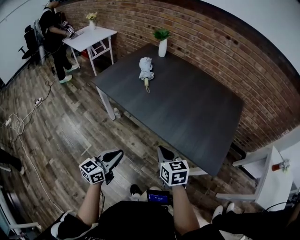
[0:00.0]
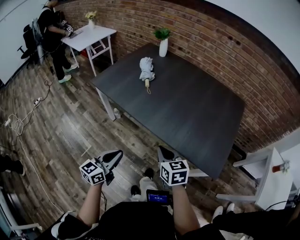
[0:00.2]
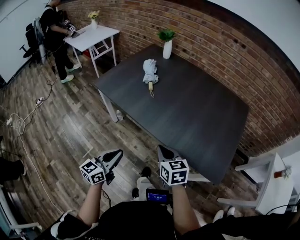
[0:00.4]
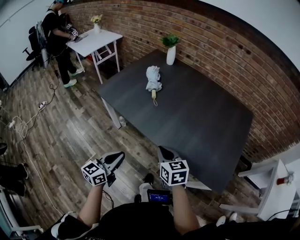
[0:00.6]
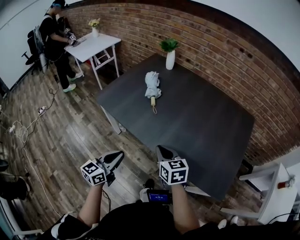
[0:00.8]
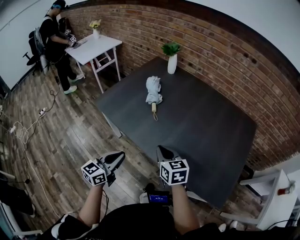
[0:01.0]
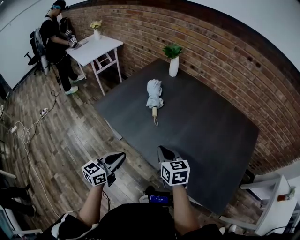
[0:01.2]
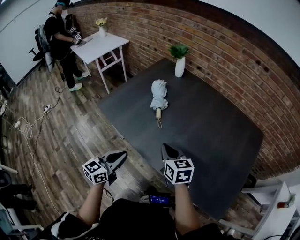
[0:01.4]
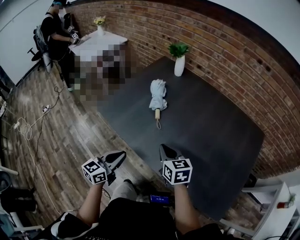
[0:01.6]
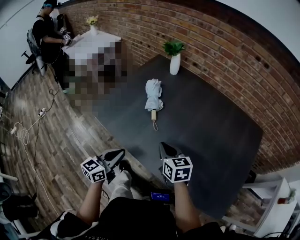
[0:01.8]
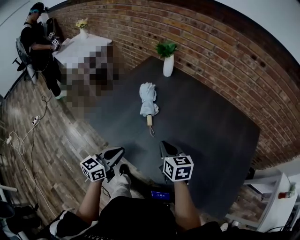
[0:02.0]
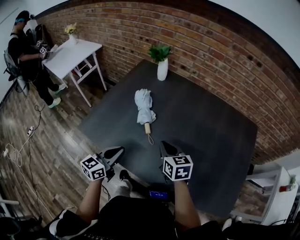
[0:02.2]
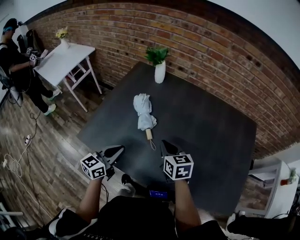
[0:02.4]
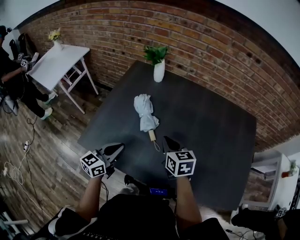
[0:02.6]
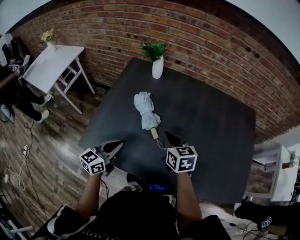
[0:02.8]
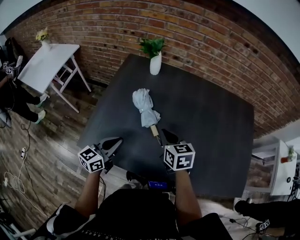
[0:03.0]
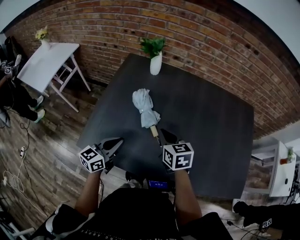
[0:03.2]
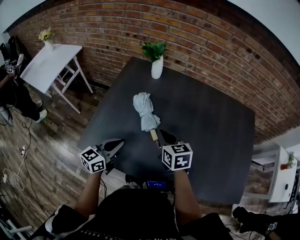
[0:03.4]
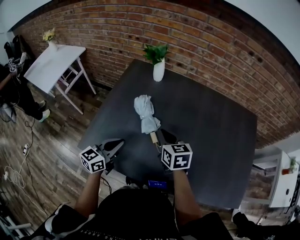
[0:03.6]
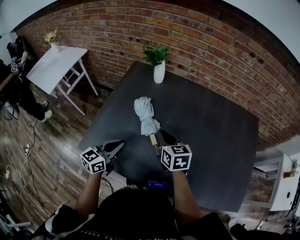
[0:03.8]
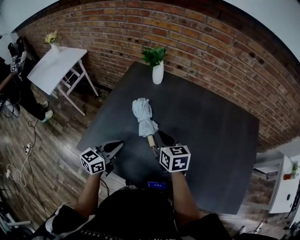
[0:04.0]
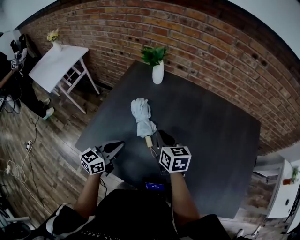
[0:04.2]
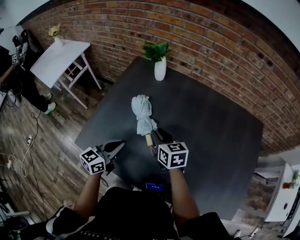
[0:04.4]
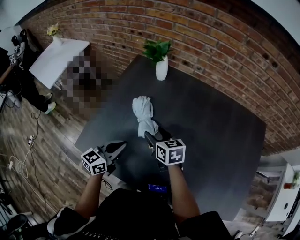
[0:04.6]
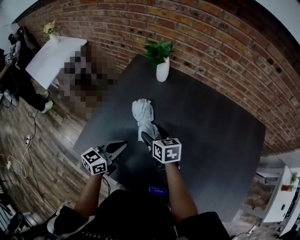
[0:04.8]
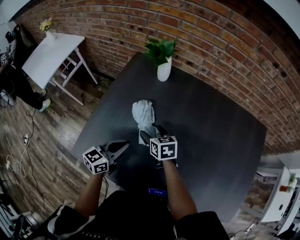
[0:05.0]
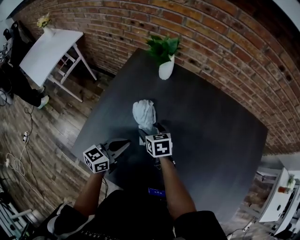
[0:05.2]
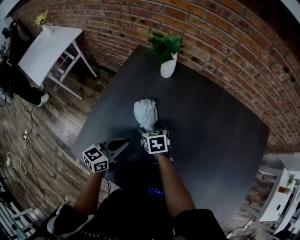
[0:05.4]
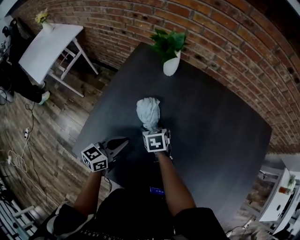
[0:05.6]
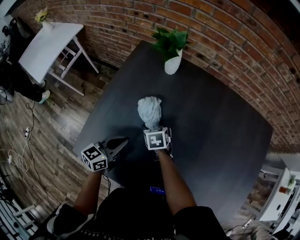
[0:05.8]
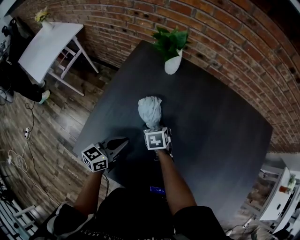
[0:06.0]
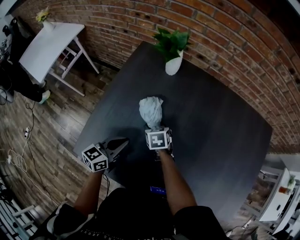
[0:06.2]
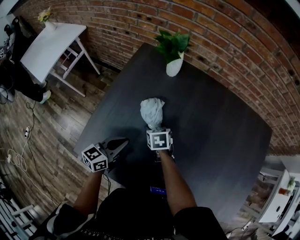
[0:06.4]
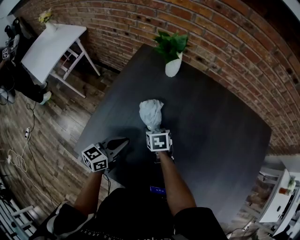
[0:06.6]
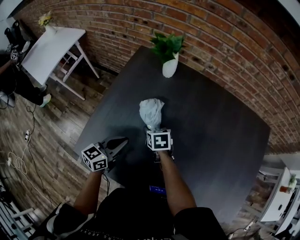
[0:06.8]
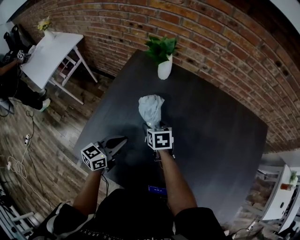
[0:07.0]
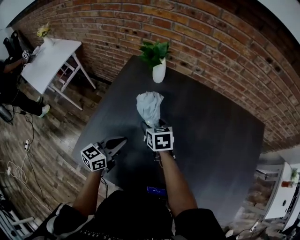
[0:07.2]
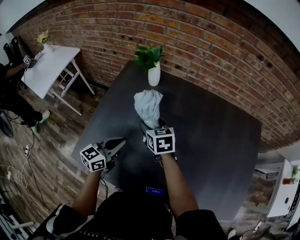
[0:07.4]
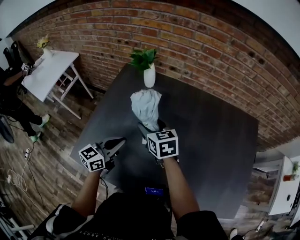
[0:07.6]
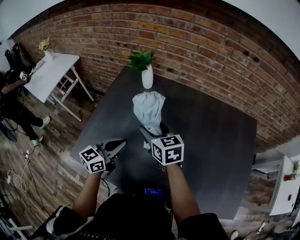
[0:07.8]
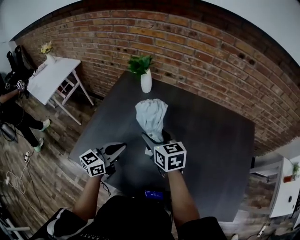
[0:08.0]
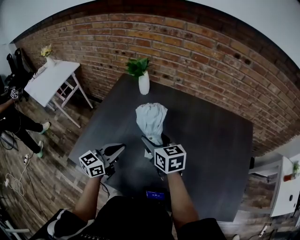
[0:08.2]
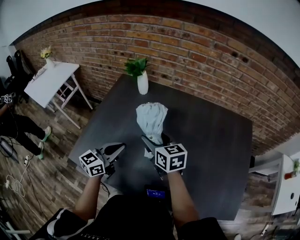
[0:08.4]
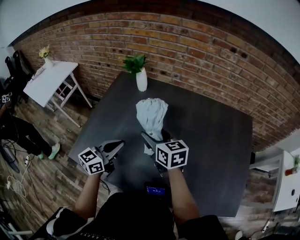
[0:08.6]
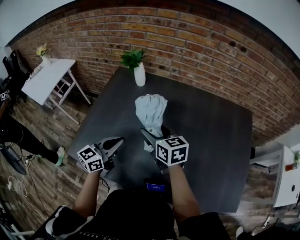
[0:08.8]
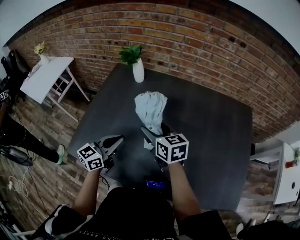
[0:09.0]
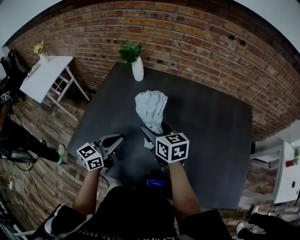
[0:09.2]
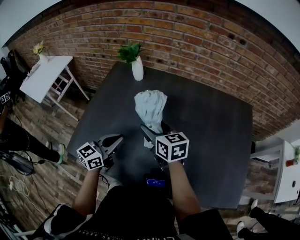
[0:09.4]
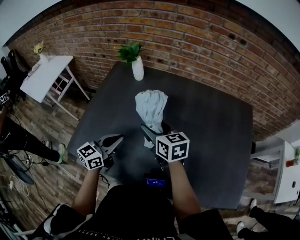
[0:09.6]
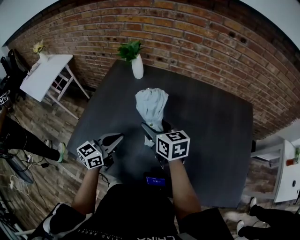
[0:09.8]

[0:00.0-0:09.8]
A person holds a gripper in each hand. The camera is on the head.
0:00.0 to 0:01.4: Both grippers travel together forward, roughly 25 cm.
0:01.4 to 0:02.8: The two grippers go some 25 cm forward and to the left. The left gripper turns by about 20 degrees, while the right gripper rotates approximately 20 degrees.
0:02.8 to 0:04.2: The right gripper is displaced forward by approximately 5 cm. Meanwhile the left gripper moves roughly 5 cm.
0:04.2 to 0:05.6: The left gripper moves forward and downward, some 10 cm, while the right gripper goes about 25 cm downward, forward and to the left, swivels about 30 degrees, and opens up.
0:05.6 to 0:07.0: The right gripper shifts approximately 5 cm upward.
0:07.0 to 0:08.4: The right gripper is displaced upward, to the right and backward by approximately 25 cm, and changes its angle by some 30 degrees, while the left gripper goes approximately 15 cm to the right, upward and backward.
0:08.4 to 0:09.8: The grippers stay close to where they were, moving slightly.

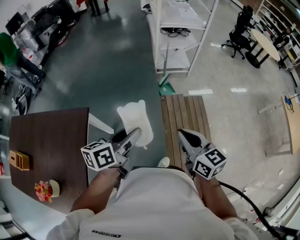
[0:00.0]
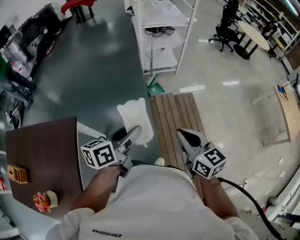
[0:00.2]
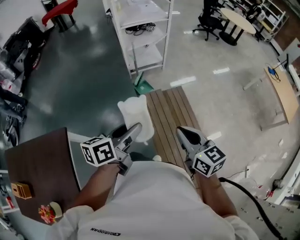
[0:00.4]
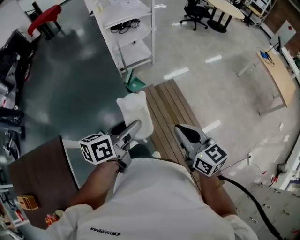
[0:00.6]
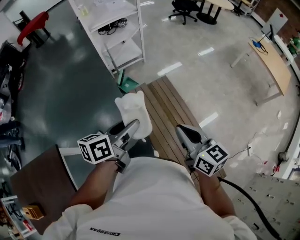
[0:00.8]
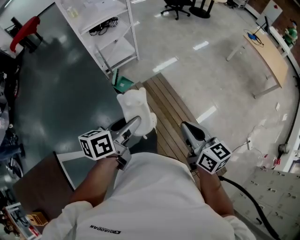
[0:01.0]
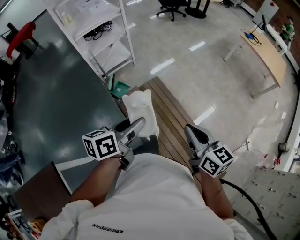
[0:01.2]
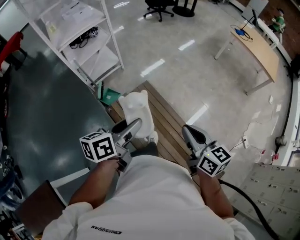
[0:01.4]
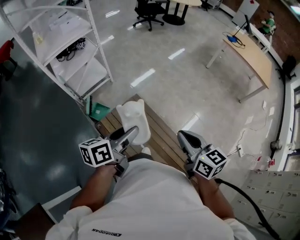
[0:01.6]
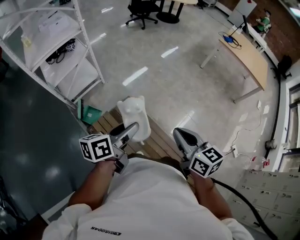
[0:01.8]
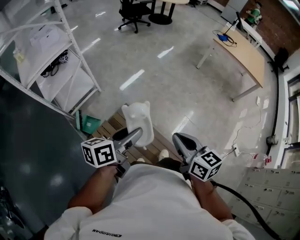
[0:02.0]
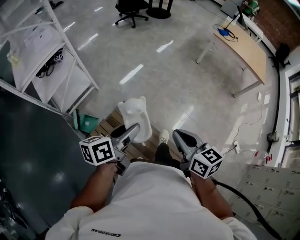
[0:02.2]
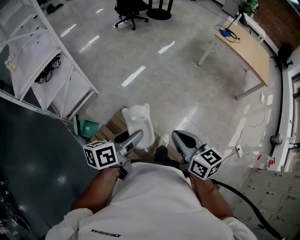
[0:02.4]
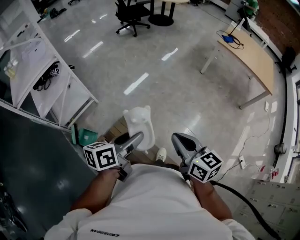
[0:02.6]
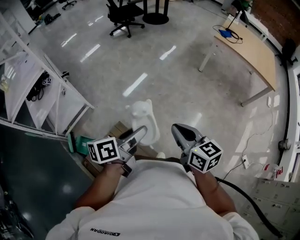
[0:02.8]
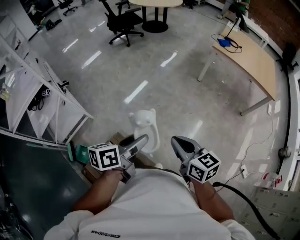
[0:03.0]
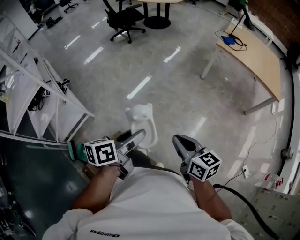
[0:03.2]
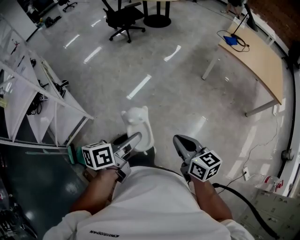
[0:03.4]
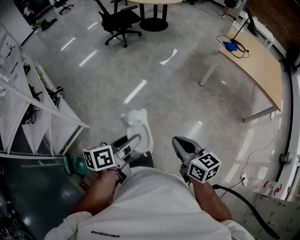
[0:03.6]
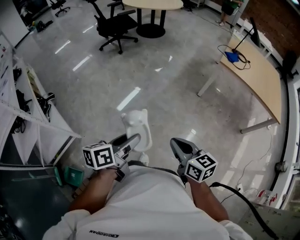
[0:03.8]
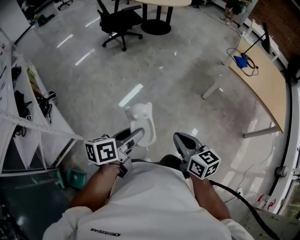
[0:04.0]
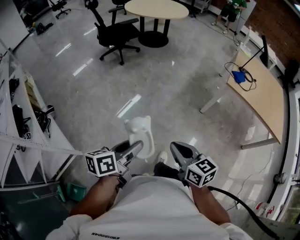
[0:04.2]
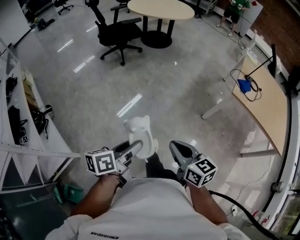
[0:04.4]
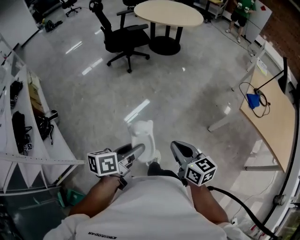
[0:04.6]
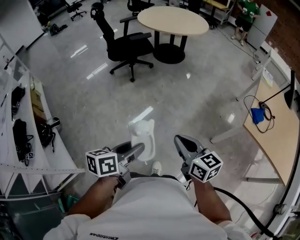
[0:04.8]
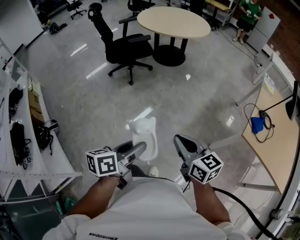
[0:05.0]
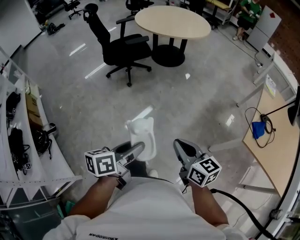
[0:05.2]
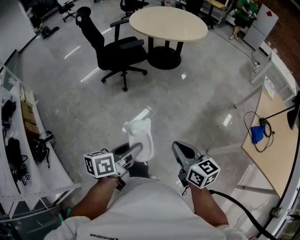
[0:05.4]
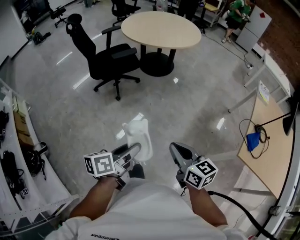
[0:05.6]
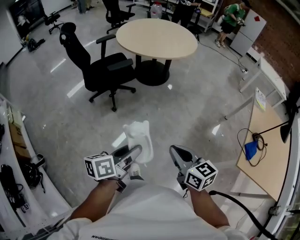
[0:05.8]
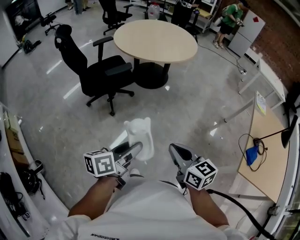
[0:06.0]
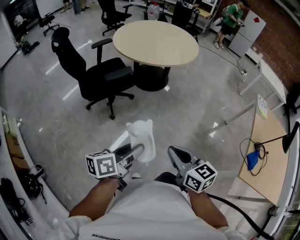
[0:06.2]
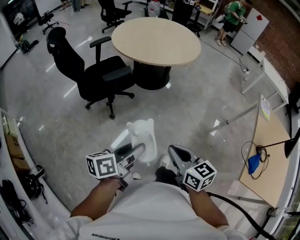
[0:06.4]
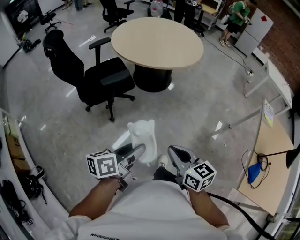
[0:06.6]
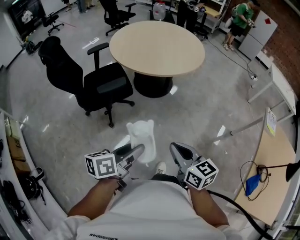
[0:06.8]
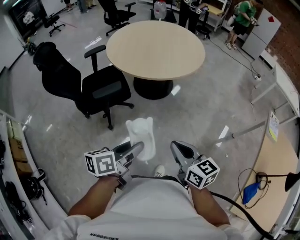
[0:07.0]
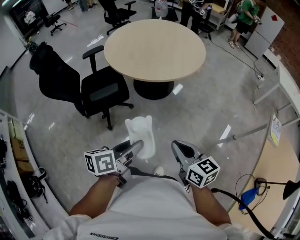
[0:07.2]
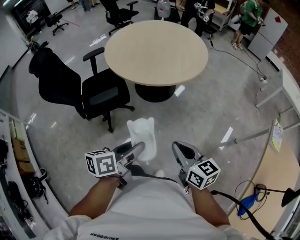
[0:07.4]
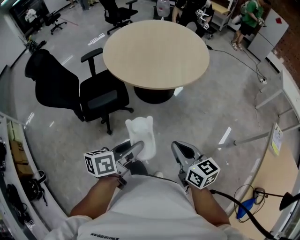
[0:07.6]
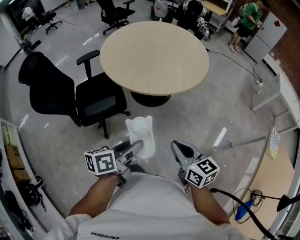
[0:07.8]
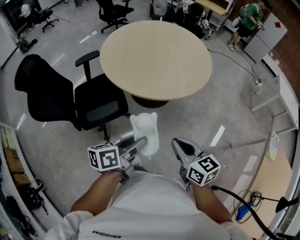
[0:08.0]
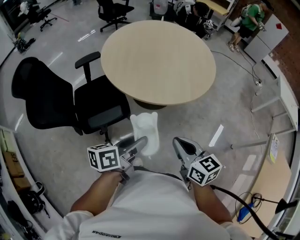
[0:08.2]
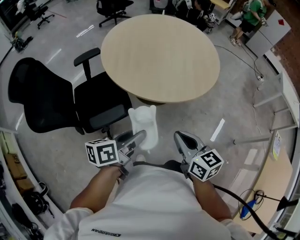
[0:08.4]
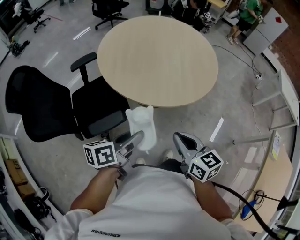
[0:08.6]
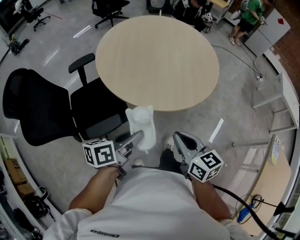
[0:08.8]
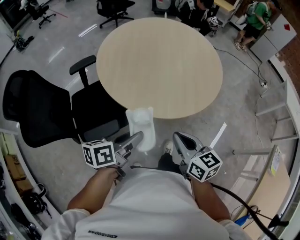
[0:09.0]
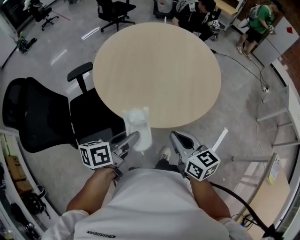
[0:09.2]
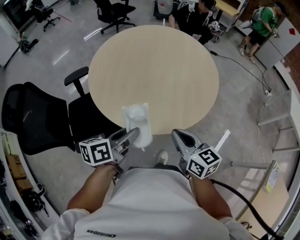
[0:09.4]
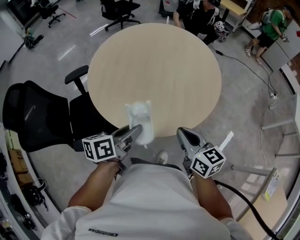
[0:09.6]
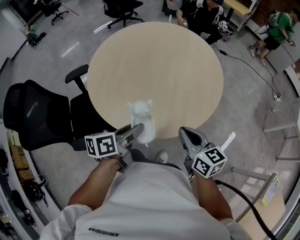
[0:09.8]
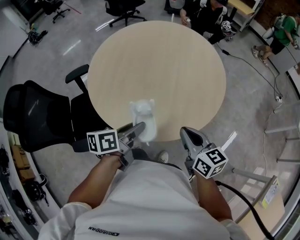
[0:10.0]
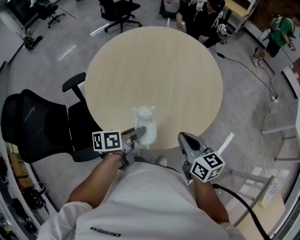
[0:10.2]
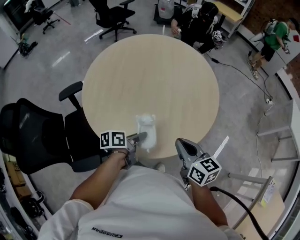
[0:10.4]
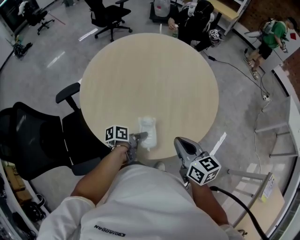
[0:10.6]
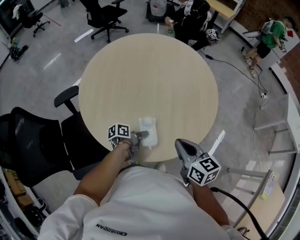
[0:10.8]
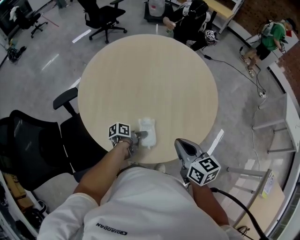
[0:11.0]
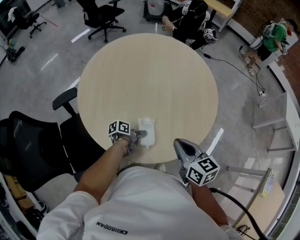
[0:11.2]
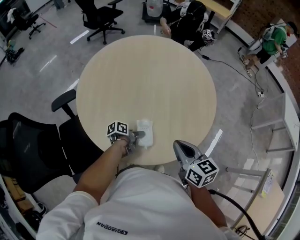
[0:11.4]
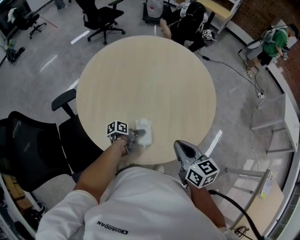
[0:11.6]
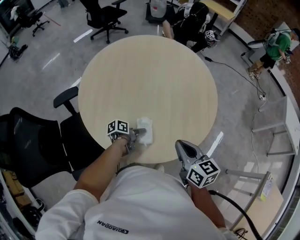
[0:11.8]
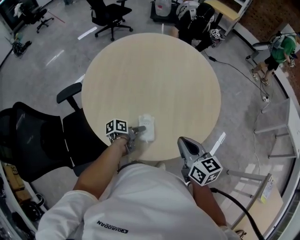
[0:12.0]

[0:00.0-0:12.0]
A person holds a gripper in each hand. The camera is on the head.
0:00.0 to 0:01.6: The two grippers travel together, approximately 40 cm. The left gripper swivels about 40 degrees. The right gripper rotates about 40 degrees.
0:01.6 to 0:03.0: The right gripper heads forward, covering approximately 35 cm, while the left gripper heads forward and to the right, covering some 40 cm.
0:03.0 to 0:04.4: The two grippers travel together, forward, some 50 cm.
0:04.4 to 0:06.0: Both grippers are carried forward, roughly 50 cm.
0:06.0 to 0:07.6: Both grippers travel together forward, about 30 cm.
0:07.6 to 0:09.0: The grippers both shift forward by approximately 25 cm.
0:09.0 to 0:10.4: The right gripper travels forward and to the right by about 20 cm; the left gripper travels forward, downward and to the right by about 25 cm.
0:10.4 to 0:12.0: The left gripper heads downward, covering roughly 10 cm, and opens its fingers.

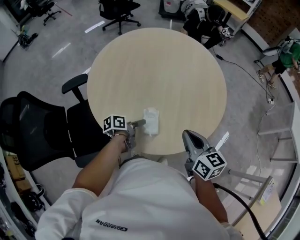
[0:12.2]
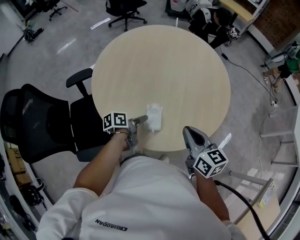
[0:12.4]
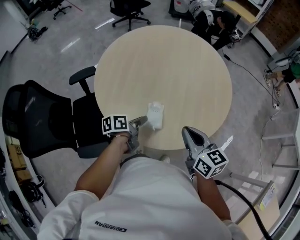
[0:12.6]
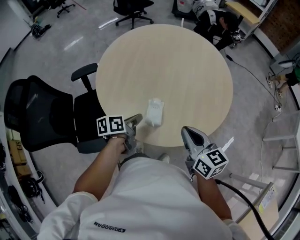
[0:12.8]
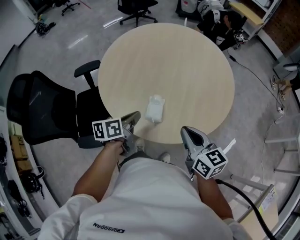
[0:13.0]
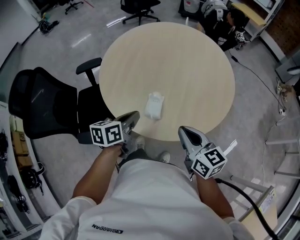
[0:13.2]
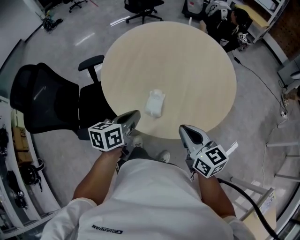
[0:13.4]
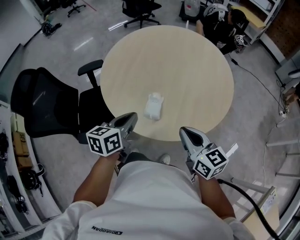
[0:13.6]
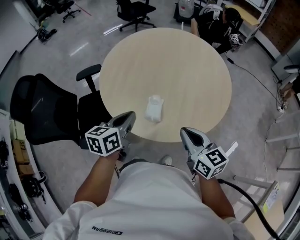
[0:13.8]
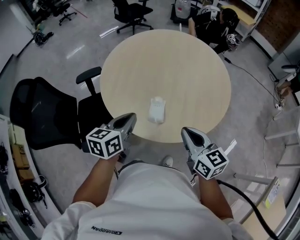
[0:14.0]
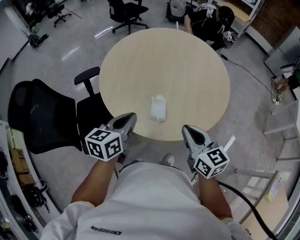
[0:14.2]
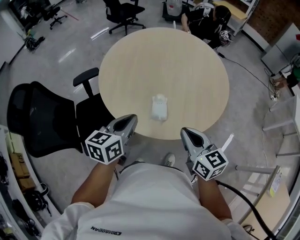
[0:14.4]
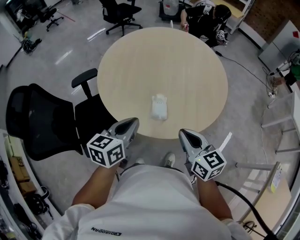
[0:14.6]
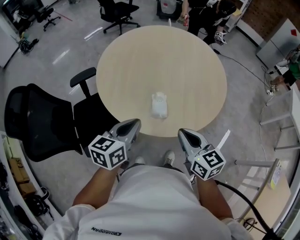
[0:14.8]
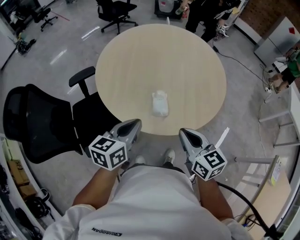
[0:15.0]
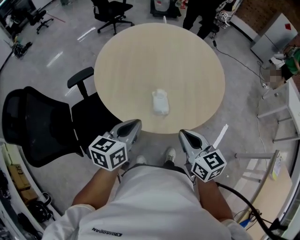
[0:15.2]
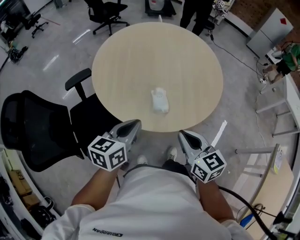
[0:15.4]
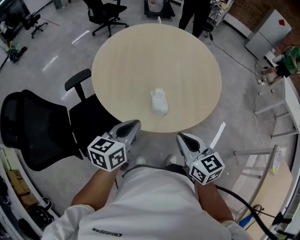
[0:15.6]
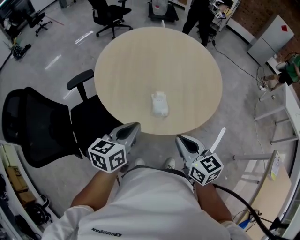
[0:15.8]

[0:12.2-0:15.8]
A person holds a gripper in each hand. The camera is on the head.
0:12.2 to 0:14.0: The left gripper is displaced upward and backward by about 20 cm, twists about 40 degrees clockwise, seen from behind, and closes its fingers, while the right gripper travels backward by roughly 5 cm.
0:14.0 to 0:15.8: The right gripper travels backward and to the left by some 10 cm; the left gripper heads backward, covering about 5 cm.
